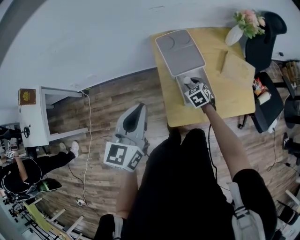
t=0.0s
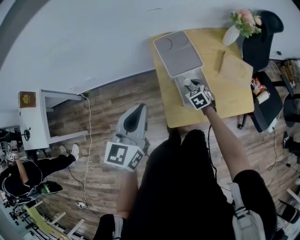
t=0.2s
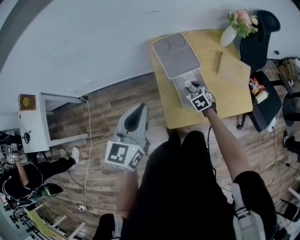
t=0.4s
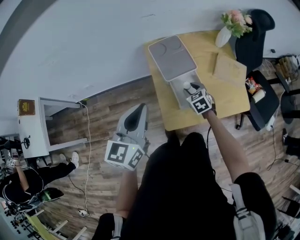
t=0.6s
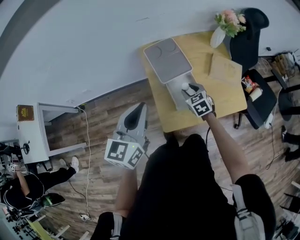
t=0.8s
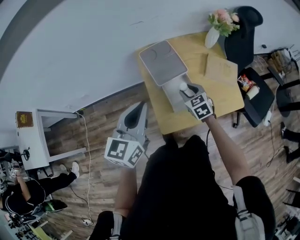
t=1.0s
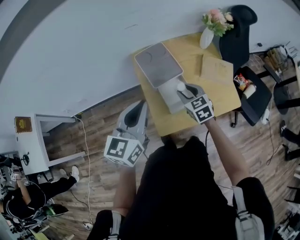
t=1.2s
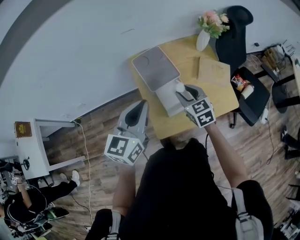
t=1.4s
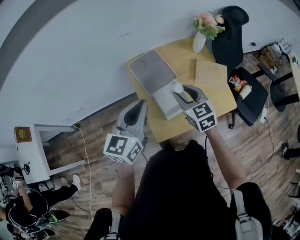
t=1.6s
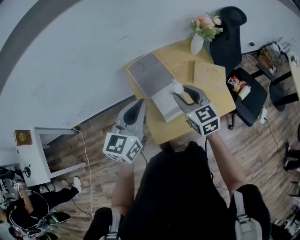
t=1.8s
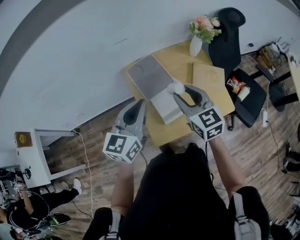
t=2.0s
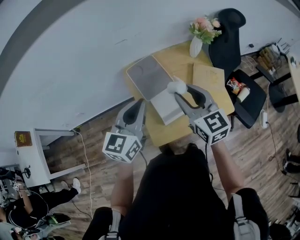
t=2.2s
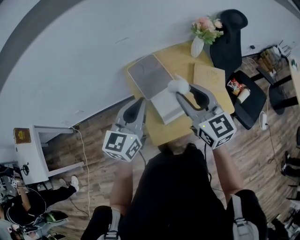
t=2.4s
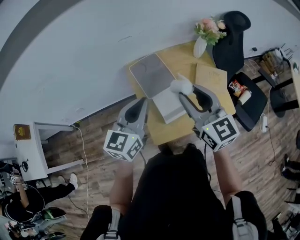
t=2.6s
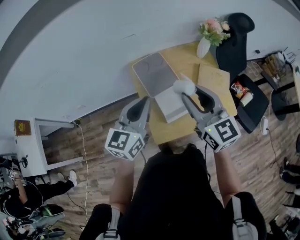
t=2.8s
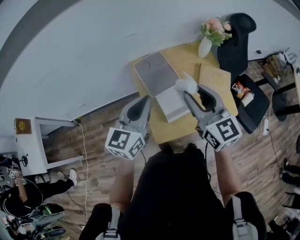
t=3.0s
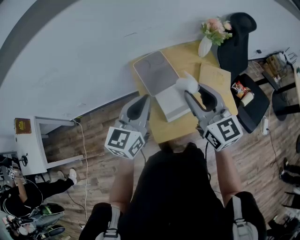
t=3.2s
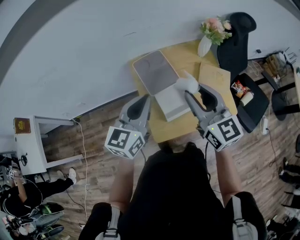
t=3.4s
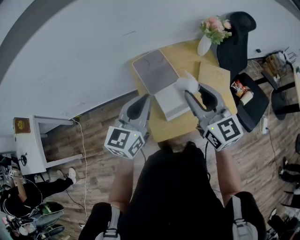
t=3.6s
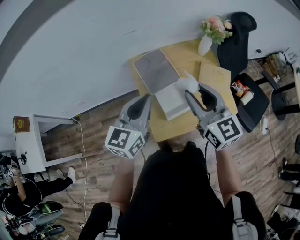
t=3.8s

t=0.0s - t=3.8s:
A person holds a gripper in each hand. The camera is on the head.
t=0.0s - t=1.2s: The left gripper goes about 5 cm to the right. The right gripper moves upward, about 15 cm.
t=1.2s - t=2.6s: The right gripper travels upward by some 25 cm, and angles its fingers upward, by roughly 30 degrees, while the left gripper shifts by some 5 cm.
t=2.6s - t=3.8s: Neither gripper changes place.

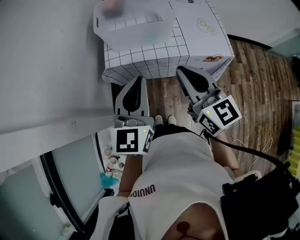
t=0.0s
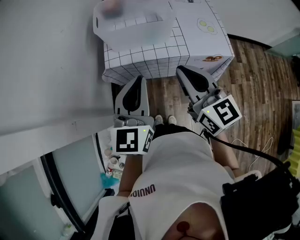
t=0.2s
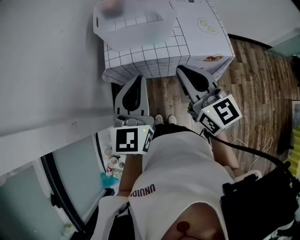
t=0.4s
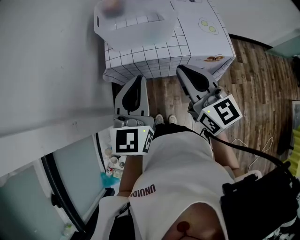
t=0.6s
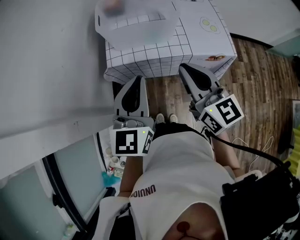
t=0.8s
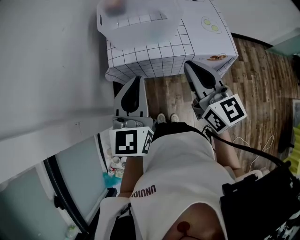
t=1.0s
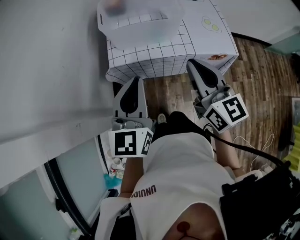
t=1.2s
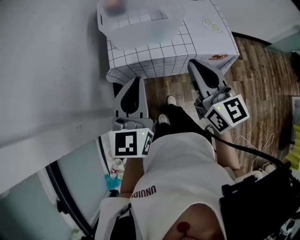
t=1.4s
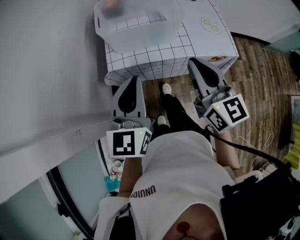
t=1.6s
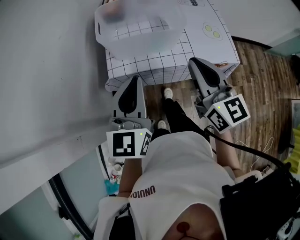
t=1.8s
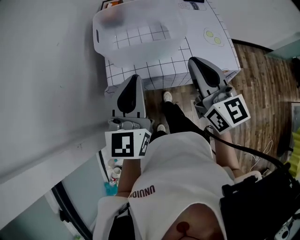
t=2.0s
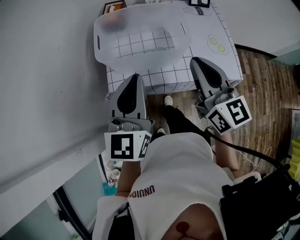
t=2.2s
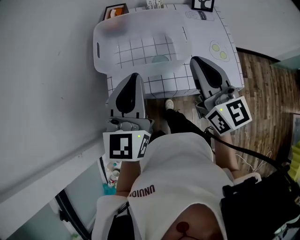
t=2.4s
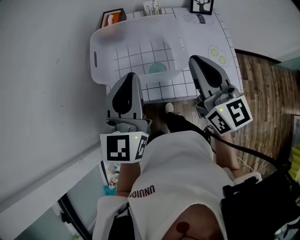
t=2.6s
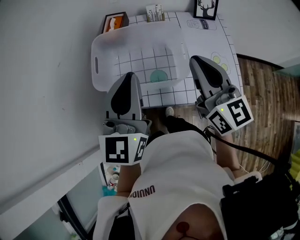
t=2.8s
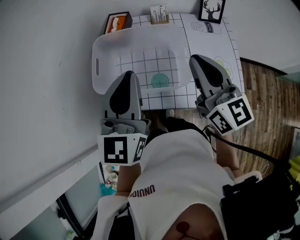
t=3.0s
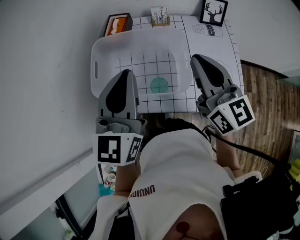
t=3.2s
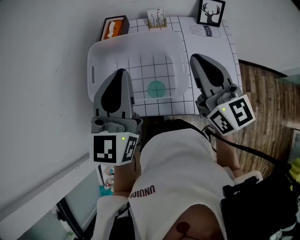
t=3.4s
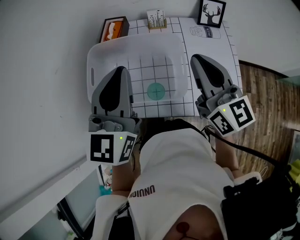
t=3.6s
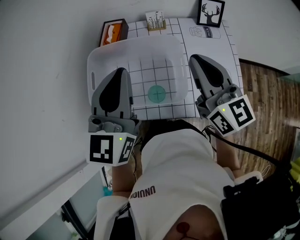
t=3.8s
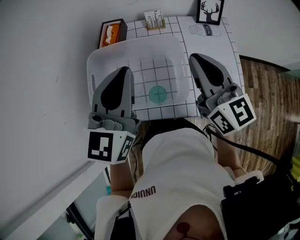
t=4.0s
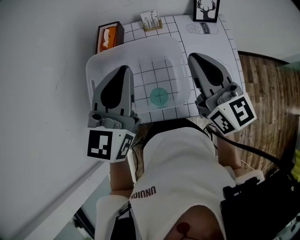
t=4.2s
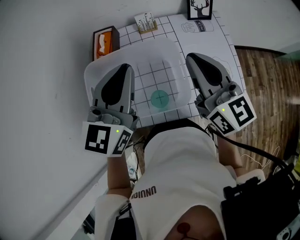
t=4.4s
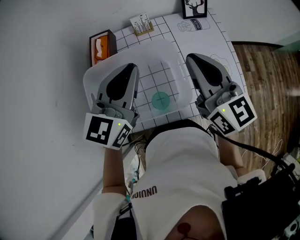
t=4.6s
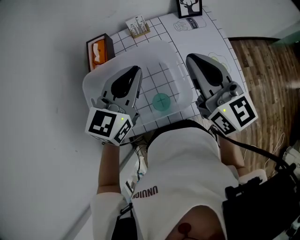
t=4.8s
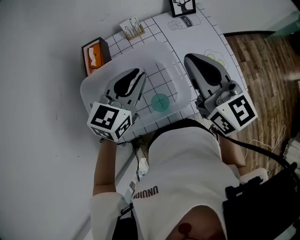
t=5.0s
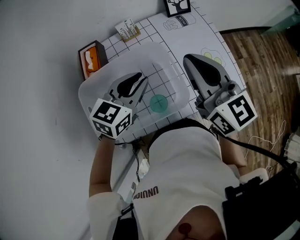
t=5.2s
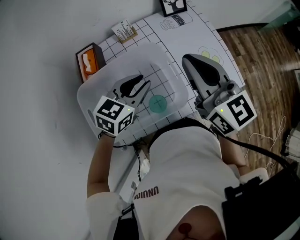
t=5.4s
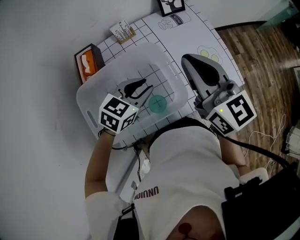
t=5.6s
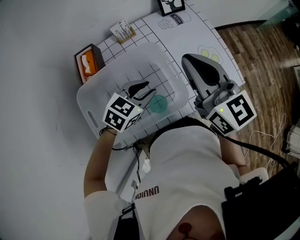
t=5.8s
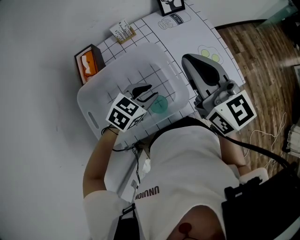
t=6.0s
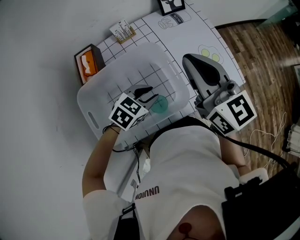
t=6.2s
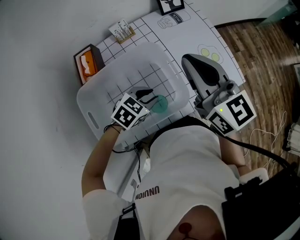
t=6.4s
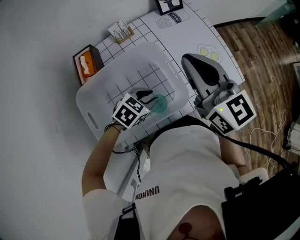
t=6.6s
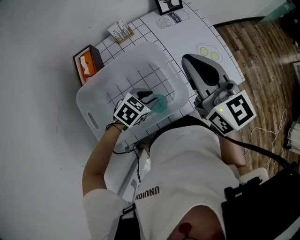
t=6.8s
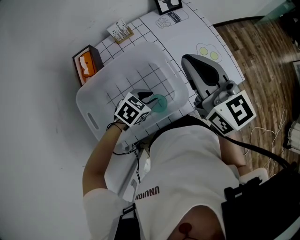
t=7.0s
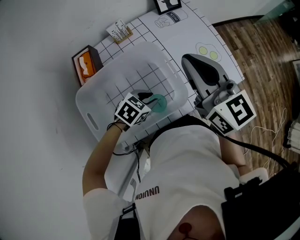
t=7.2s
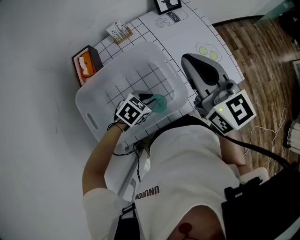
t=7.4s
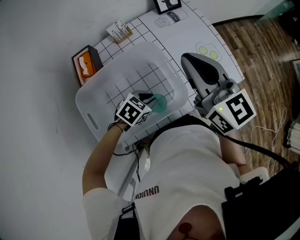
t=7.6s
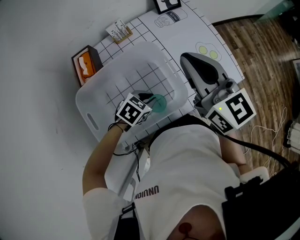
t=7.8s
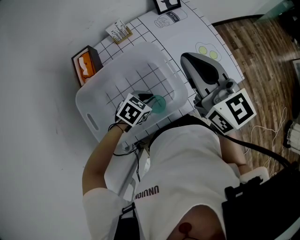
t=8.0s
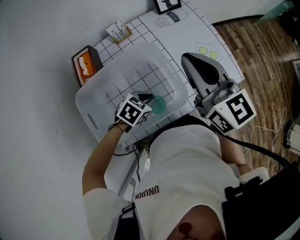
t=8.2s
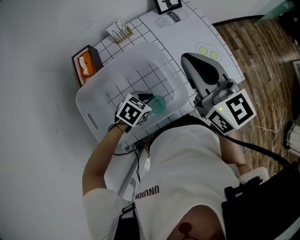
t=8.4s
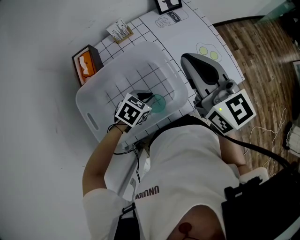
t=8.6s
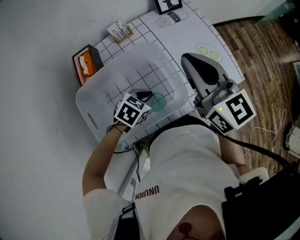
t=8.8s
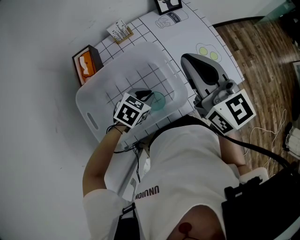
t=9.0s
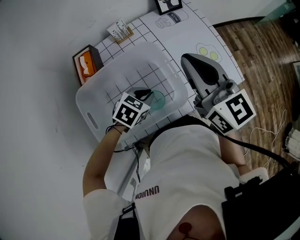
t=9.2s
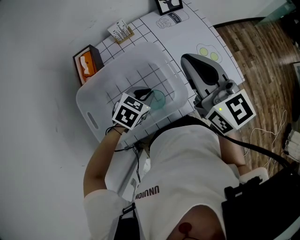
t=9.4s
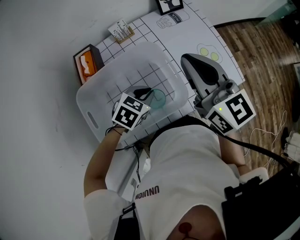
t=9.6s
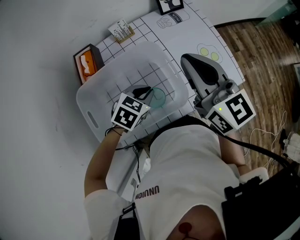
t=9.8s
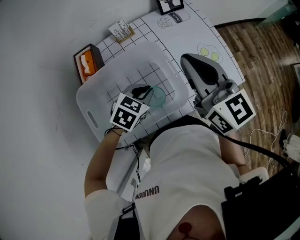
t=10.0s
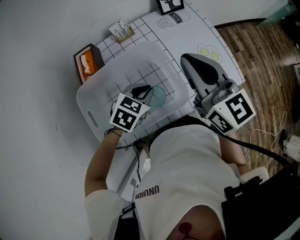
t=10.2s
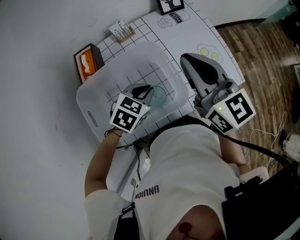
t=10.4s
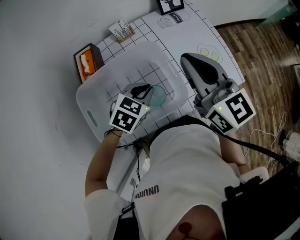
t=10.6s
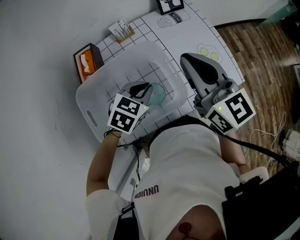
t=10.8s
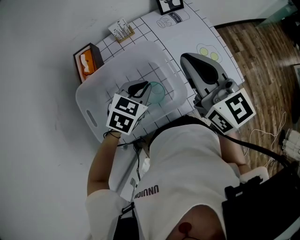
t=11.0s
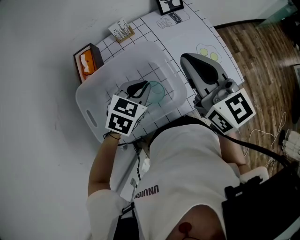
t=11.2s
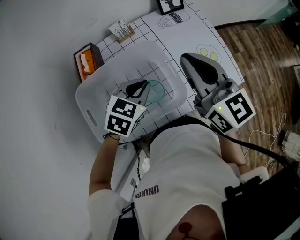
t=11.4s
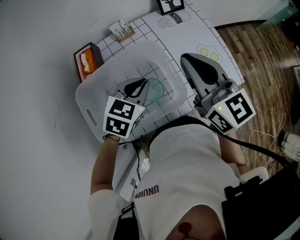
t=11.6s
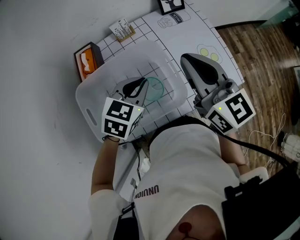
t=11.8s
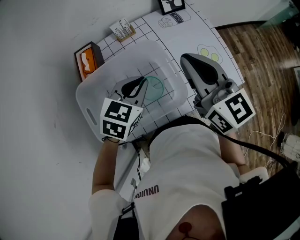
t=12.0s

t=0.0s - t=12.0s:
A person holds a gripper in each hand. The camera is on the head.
t=0.0s - t=1.6s: The left gripper changes place by roughly 5 cm.
t=1.6s - t=3.0s: Both grippers travel together forward, about 25 cm.
t=3.0s - t=4.4s: The left gripper heads forward, covering roughly 10 cm, and turns by some 20 degrees. Meanwhile the right gripper heads forward, covering about 5 cm.
t=4.4s - t=6.0s: The left gripper shifts roughly 20 cm downward, points its fingers approximately 40 degrees further downward, and opens up.
t=6.0s - t=7.6s: The left gripper shifts about 10 cm downward.
t=7.6s - t=9.0s: The grippers move only a little.
t=9.0s - t=10.4s: The left gripper travels upward by roughly 5 cm.
t=10.4s - t=12.0s: The left gripper moves upward, about 5 cm.

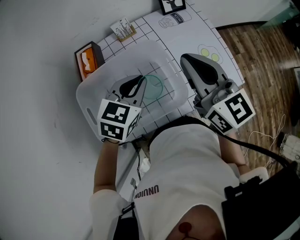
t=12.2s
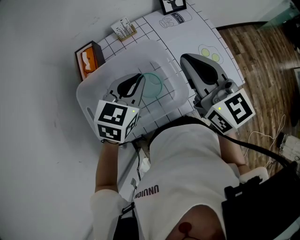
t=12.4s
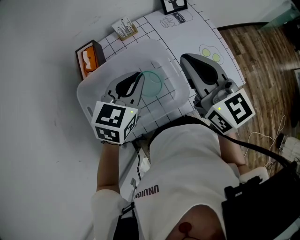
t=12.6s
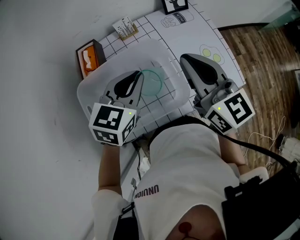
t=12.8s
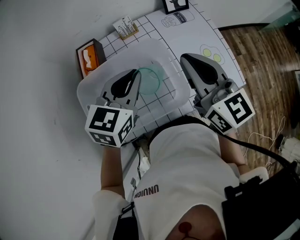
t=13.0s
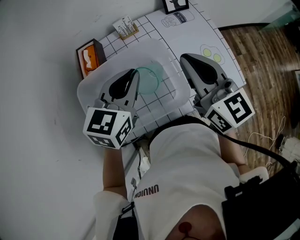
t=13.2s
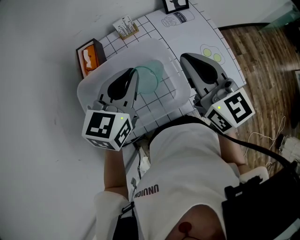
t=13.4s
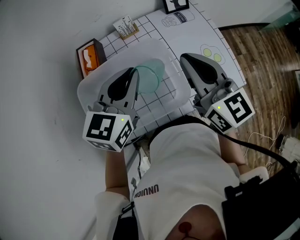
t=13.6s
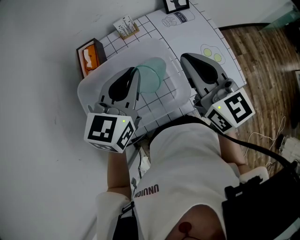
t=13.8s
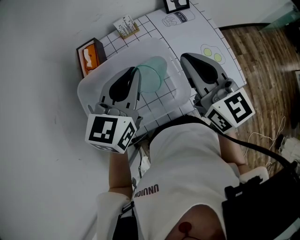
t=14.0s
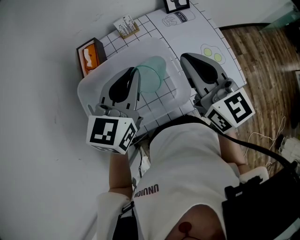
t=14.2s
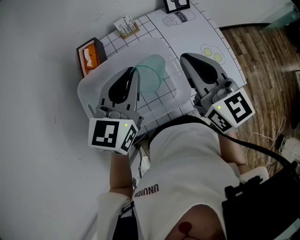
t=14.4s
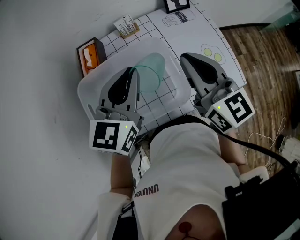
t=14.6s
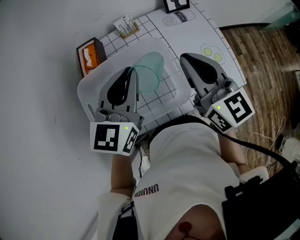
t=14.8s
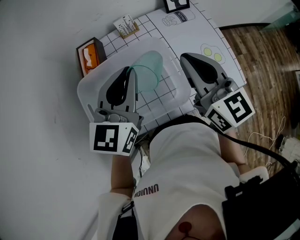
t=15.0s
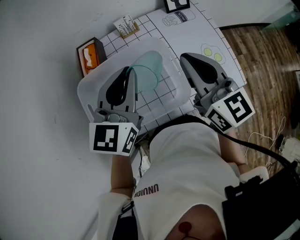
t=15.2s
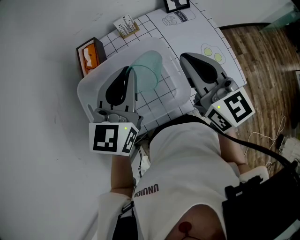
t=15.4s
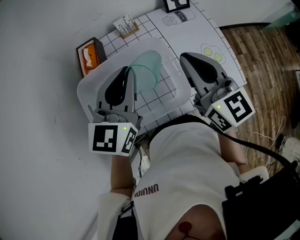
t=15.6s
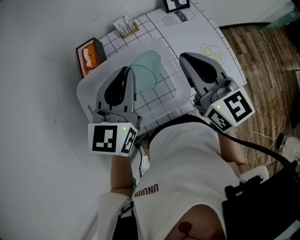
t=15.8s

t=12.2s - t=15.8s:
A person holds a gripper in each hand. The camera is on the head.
t=12.2s - t=14.0s: The left gripper goes approximately 10 cm upward, and turns by some 20 degrees.
t=14.0s - t=15.8s: The grippers make only small movements.

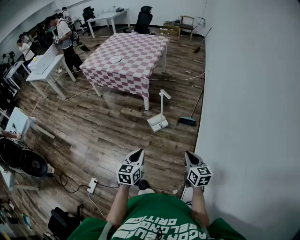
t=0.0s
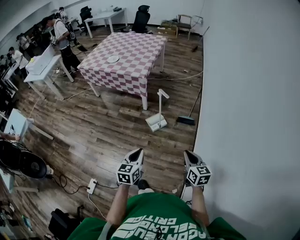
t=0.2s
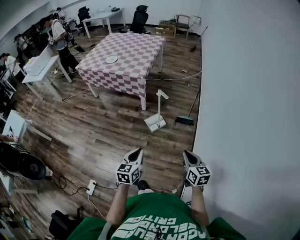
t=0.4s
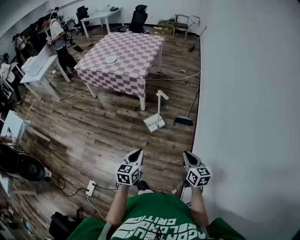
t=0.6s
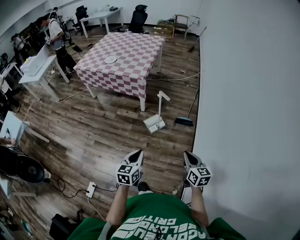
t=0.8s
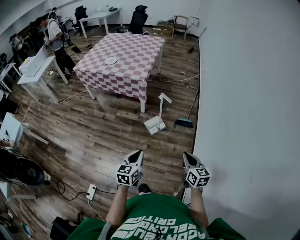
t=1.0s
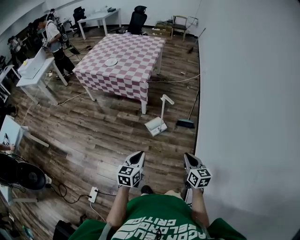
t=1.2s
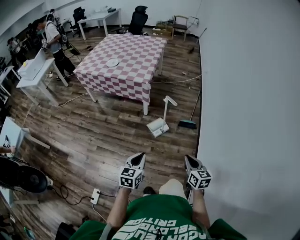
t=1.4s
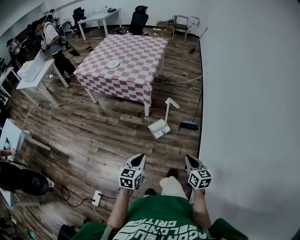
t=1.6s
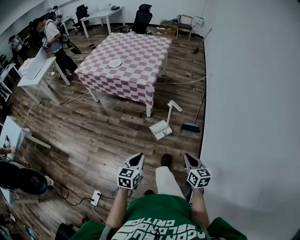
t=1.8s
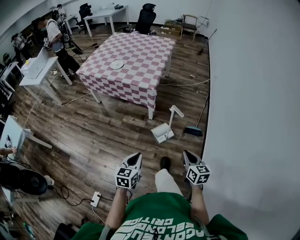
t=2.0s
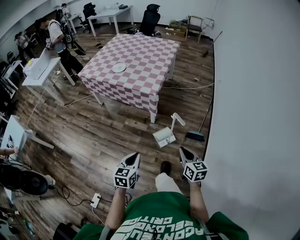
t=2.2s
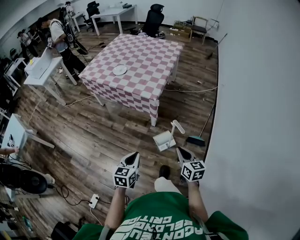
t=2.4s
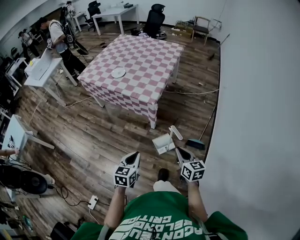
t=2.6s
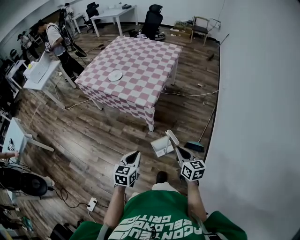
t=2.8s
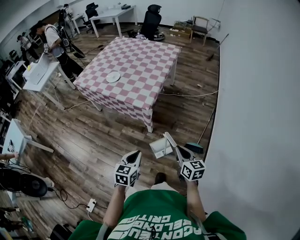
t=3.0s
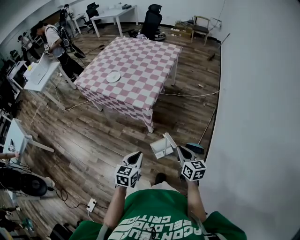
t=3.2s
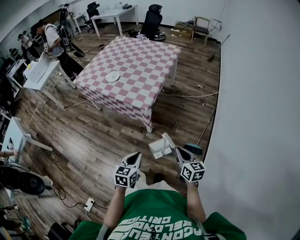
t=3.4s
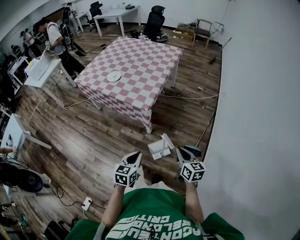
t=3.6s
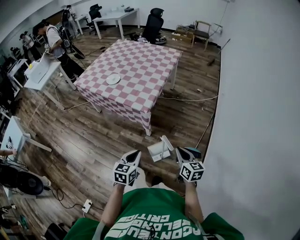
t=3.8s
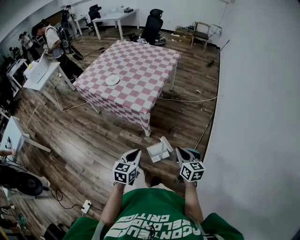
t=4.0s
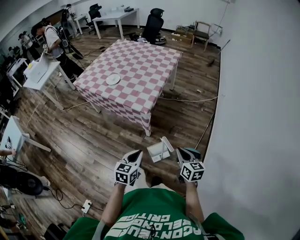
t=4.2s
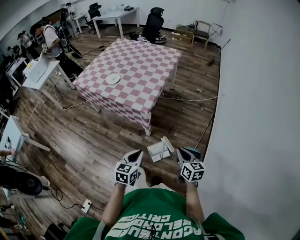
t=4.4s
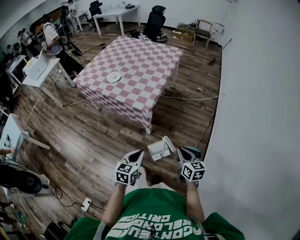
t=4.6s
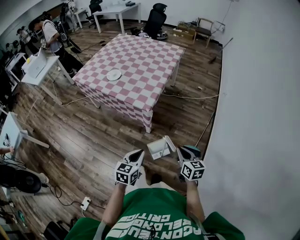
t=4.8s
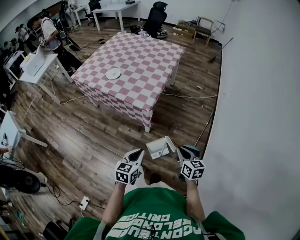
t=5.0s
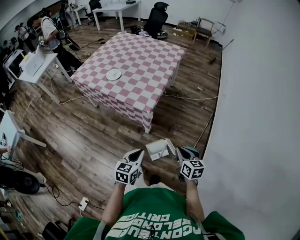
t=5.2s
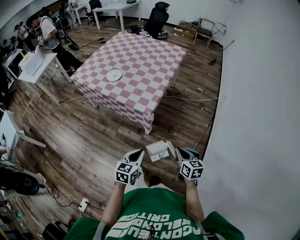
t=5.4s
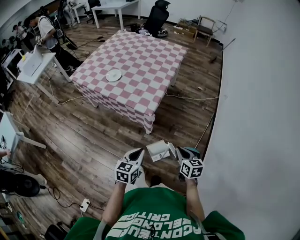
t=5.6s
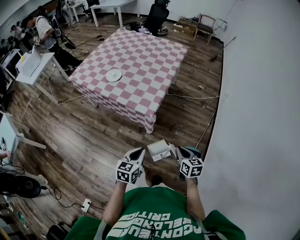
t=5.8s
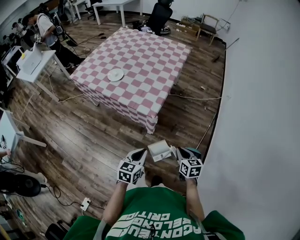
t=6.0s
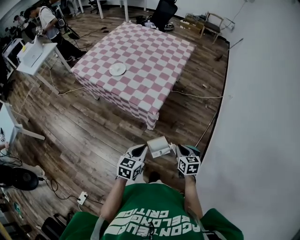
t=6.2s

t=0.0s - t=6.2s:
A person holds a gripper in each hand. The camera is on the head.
t=0.0s - t=1.6s: The two grippers go some 15 cm to the left and forward.
t=1.6s - t=3.2s: Both grippers travel together forward, roughly 35 cm.
t=3.2s - t=4.6s: There are only small adjustments of the grippers.
t=4.6s - t=6.2s: The right gripper heads forward, to the left and downward, covering some 15 cm; the left gripper heads forward and to the left, covering about 10 cm.
